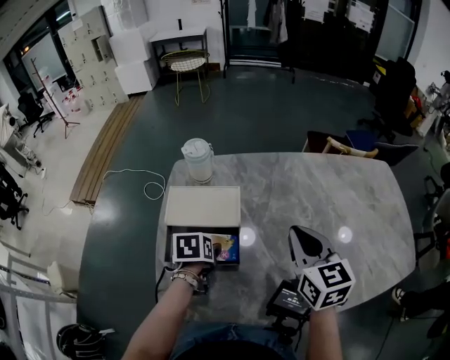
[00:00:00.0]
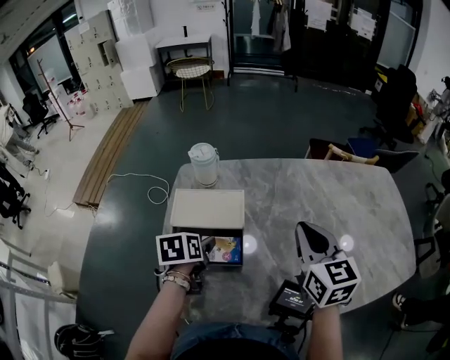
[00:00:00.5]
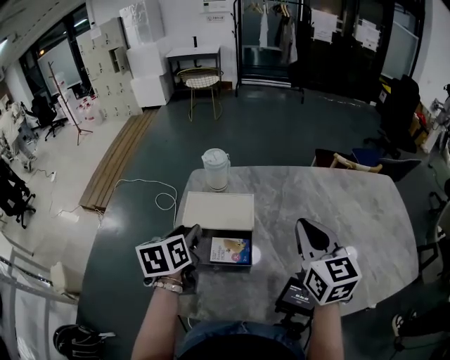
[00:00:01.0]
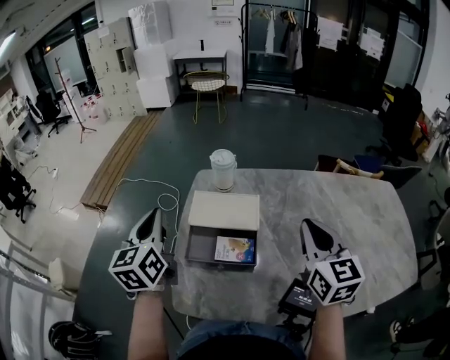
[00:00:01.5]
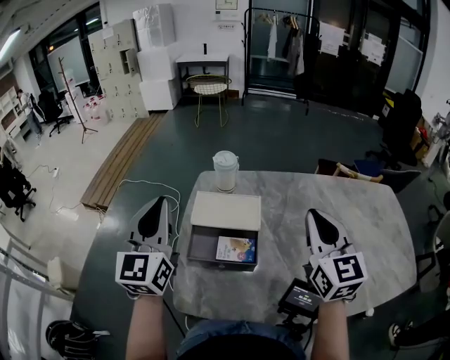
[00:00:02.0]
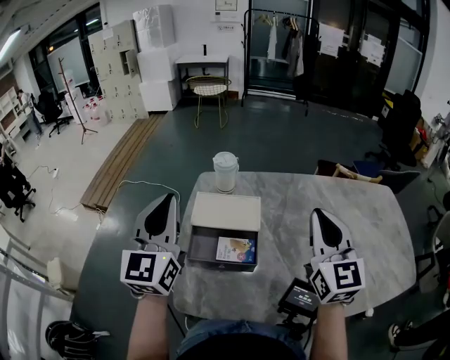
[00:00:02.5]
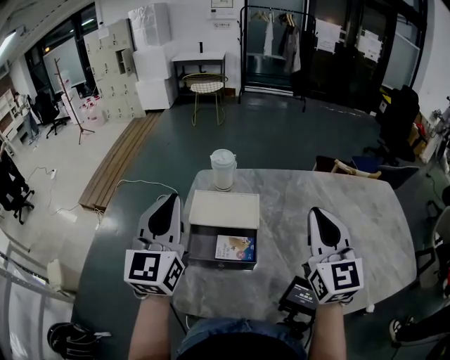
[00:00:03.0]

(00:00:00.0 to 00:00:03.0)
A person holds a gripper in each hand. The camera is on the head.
00:00:00.0 - 00:00:01.5: The right gripper shifts roughly 5 cm upward. The left gripper moves upward and to the left, approximately 30 cm, tips its fingers upward by about 50 degrees, and closes.
00:00:01.5 - 00:00:03.0: The left gripper heads upward and to the right, covering about 10 cm, and rotates roughly 30 degrees.

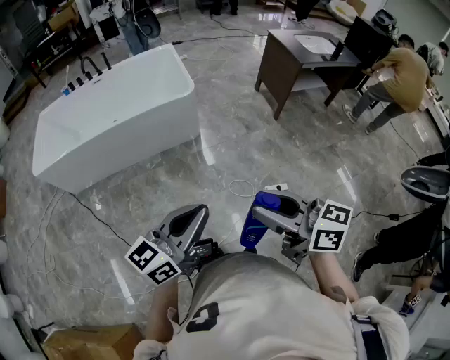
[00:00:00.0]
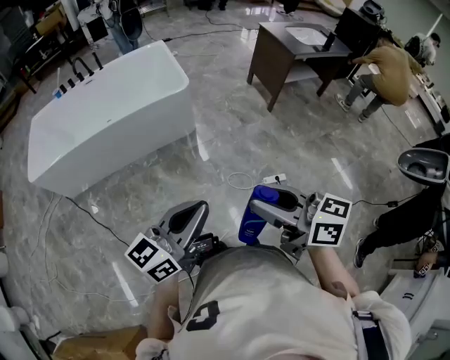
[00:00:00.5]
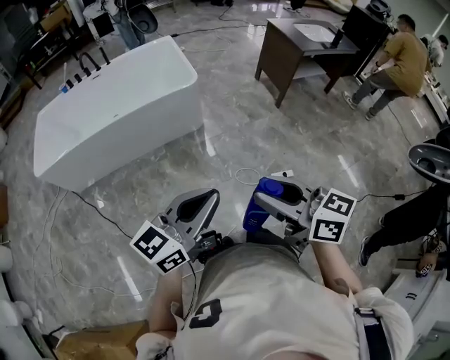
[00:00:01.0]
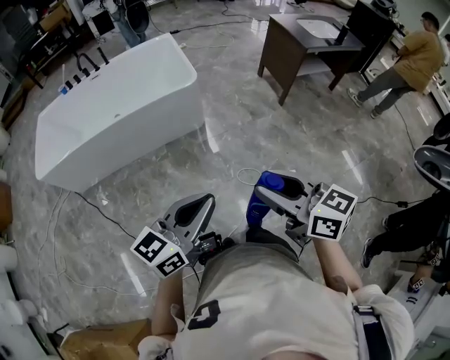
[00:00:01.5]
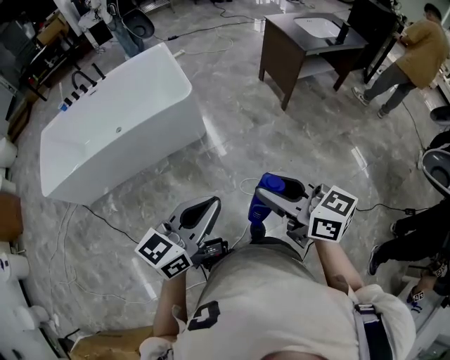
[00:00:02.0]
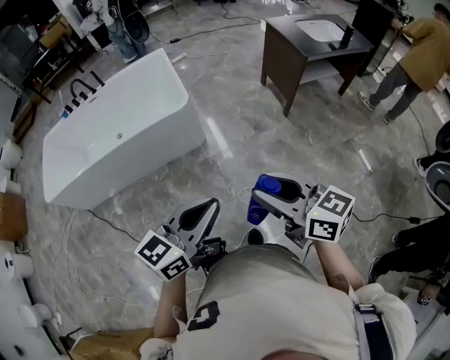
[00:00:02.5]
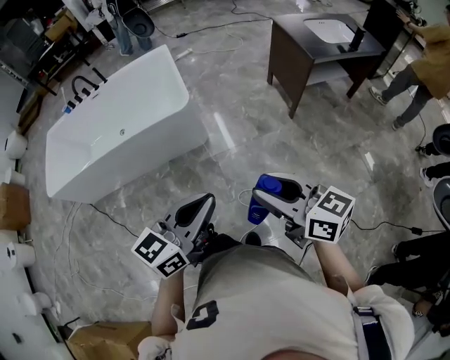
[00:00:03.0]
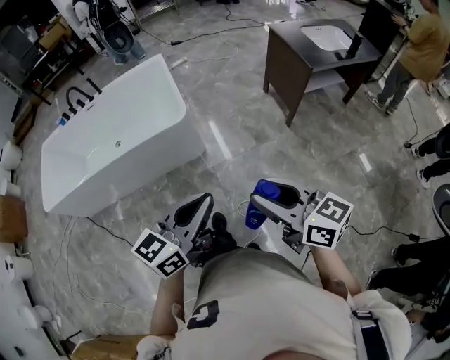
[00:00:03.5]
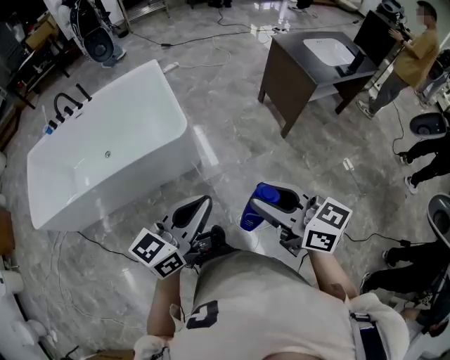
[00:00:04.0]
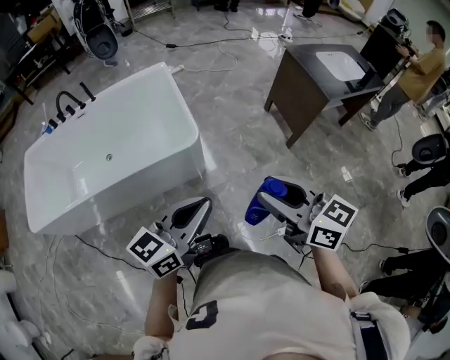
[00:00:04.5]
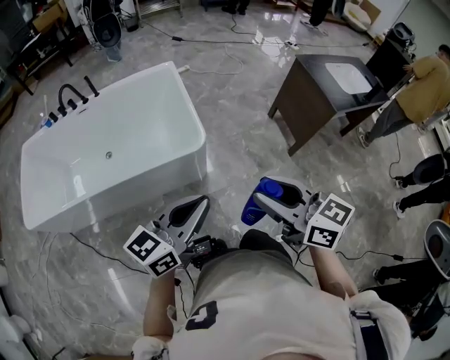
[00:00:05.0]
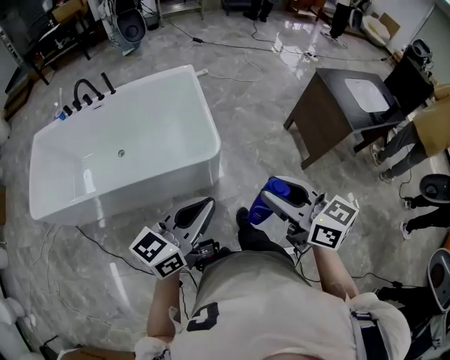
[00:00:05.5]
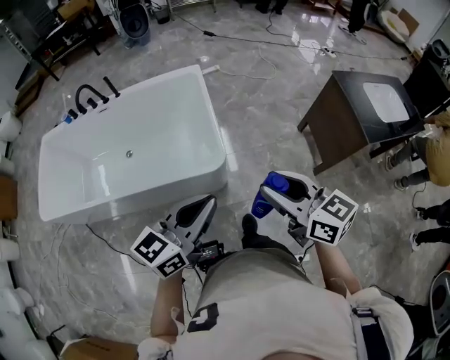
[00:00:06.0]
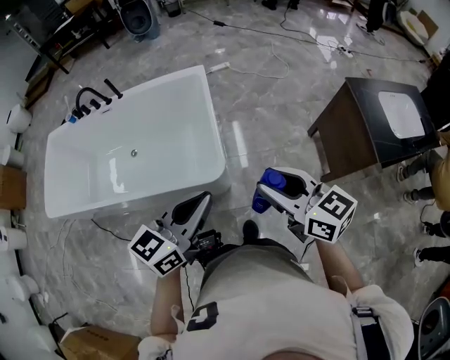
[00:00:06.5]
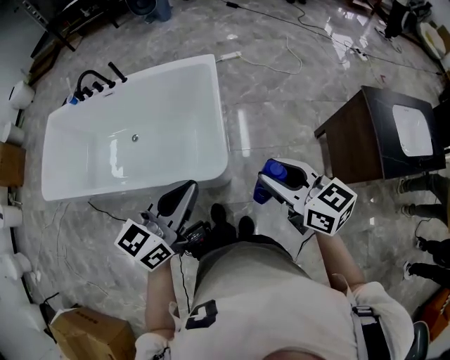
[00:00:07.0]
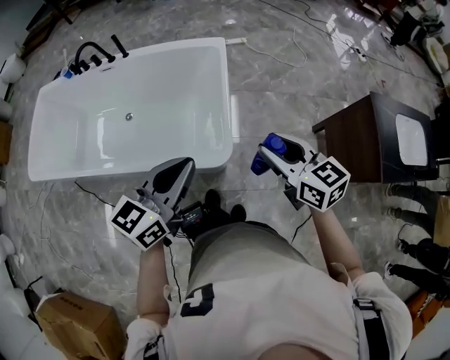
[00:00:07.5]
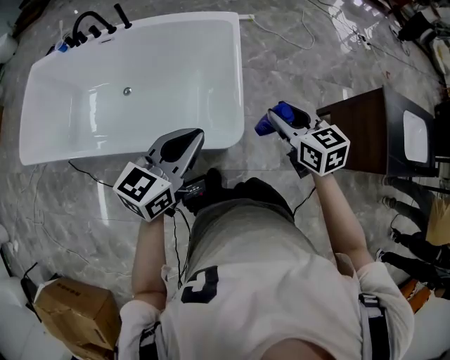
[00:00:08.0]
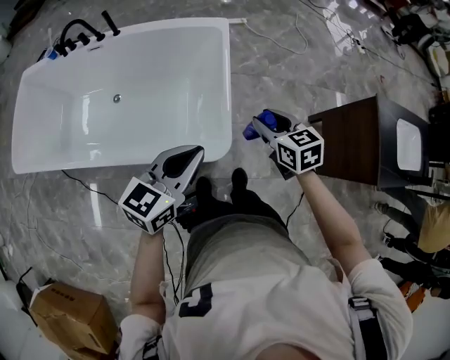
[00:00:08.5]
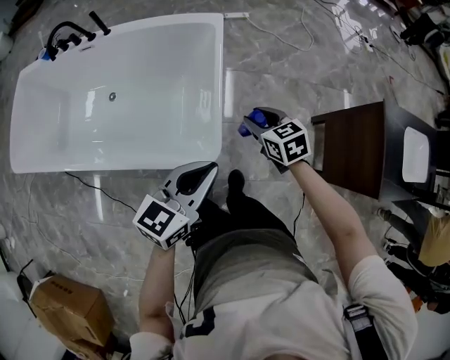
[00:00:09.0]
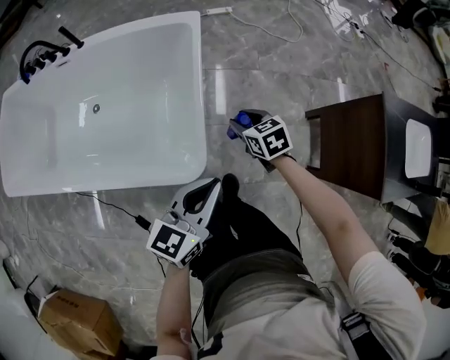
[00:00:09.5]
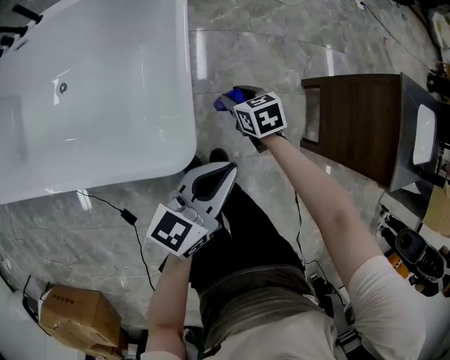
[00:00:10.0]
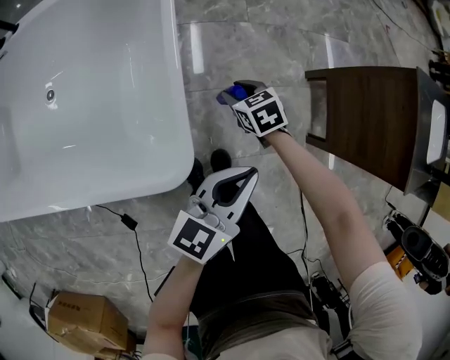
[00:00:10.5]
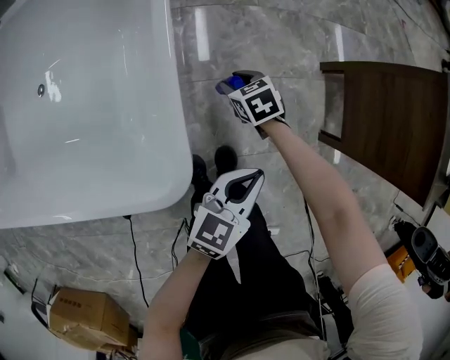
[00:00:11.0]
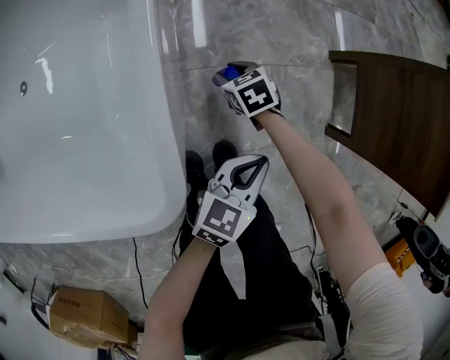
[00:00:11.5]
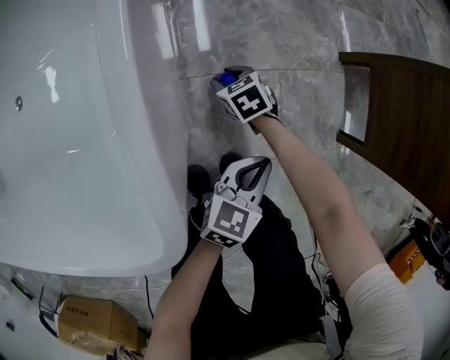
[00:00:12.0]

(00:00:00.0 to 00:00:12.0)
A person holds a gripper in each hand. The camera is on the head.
00:00:00.0 - 00:00:02.0: The left gripper moves forward and to the right, approximately 10 cm. Meanwhile the right gripper moves forward, some 15 cm.
00:00:02.0 - 00:00:04.0: The grippers both shift forward by some 25 cm.
00:00:04.0 - 00:00:06.0: Both grippers move forward, about 25 cm.
00:00:06.0 - 00:00:08.0: The left gripper moves forward, approximately 20 cm, while the right gripper travels forward and downward by about 30 cm, and turns by some 20 degrees.
00:00:08.0 - 00:00:10.0: The left gripper is displaced to the right and downward by about 30 cm, while the right gripper shifts about 35 cm downward, and swivels roughly 20 degrees.
00:00:10.0 - 00:00:12.0: The grippers both shift downward by some 40 cm. The left gripper changes its angle by roughly 20 degrees.

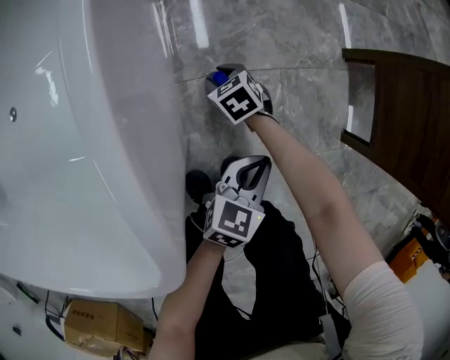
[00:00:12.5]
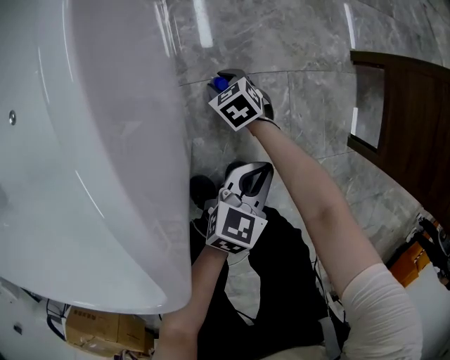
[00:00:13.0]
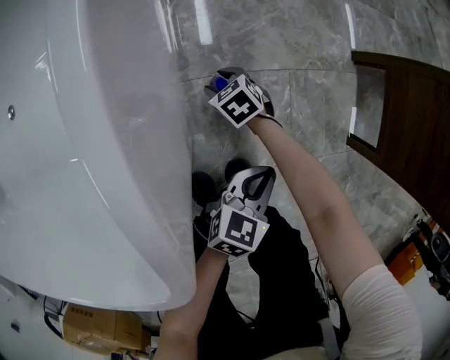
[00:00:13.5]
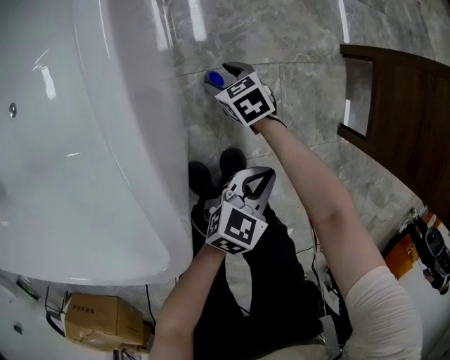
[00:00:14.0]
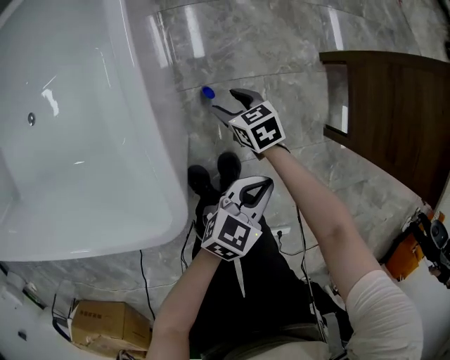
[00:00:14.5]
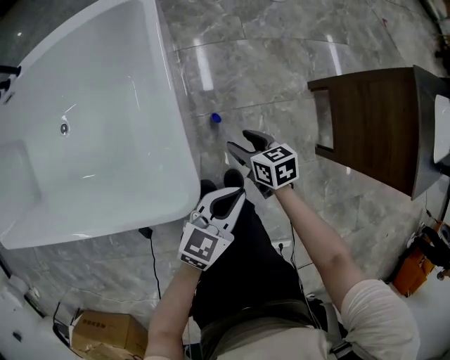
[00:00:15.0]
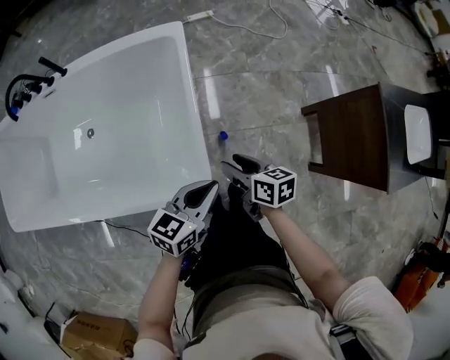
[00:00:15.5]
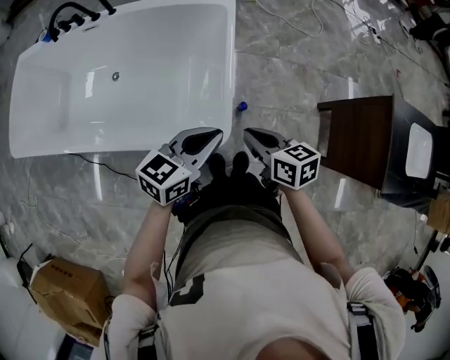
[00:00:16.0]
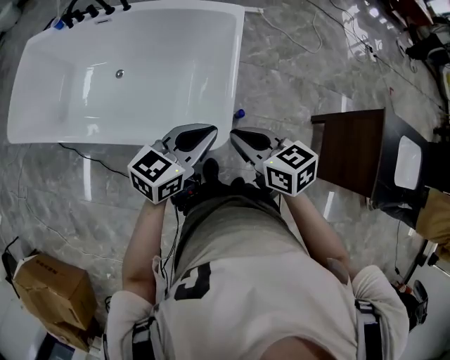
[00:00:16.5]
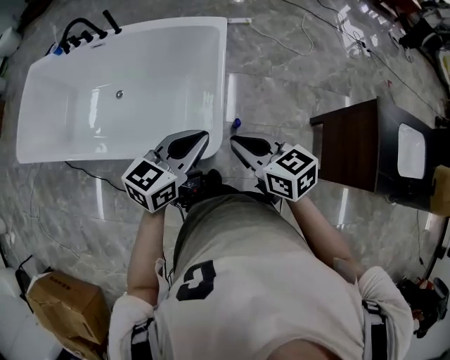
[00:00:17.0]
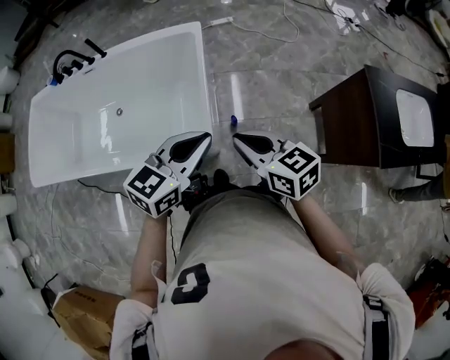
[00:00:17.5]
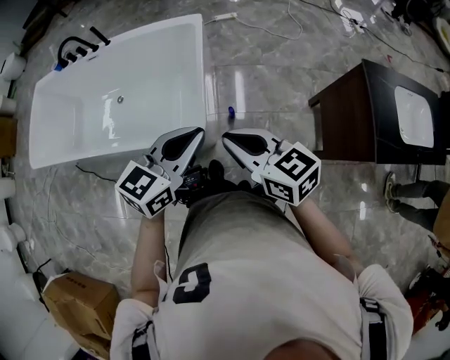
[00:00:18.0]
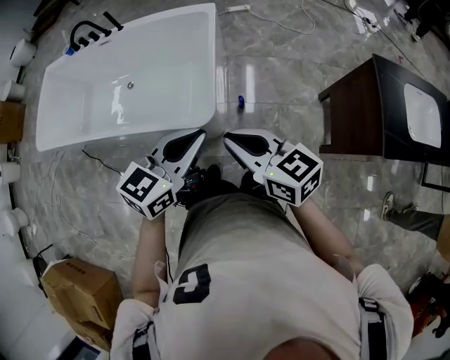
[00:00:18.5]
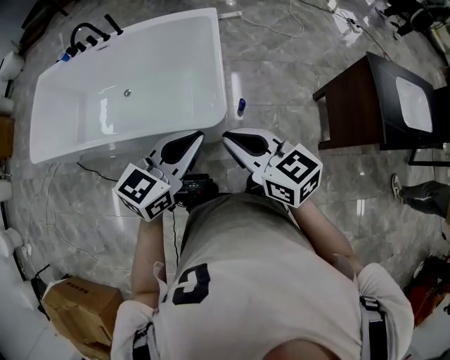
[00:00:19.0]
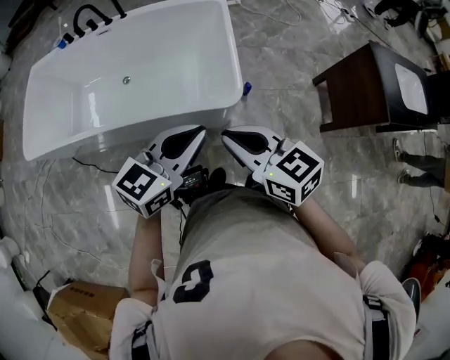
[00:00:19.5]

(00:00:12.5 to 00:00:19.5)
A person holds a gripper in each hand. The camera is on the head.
00:00:12.5 - 00:00:14.5: Both grippers move upward, roughly 15 cm. The right gripper opens.
00:00:14.5 - 00:00:16.0: The left gripper moves upward and to the left, about 50 cm, and changes its angle by some 30 degrees, while the right gripper shifts roughly 50 cm upward, turns by about 20 degrees, and closes.
00:00:16.0 - 00:00:17.5: Both grippers travel together upward, to the right and backward, about 15 cm.
00:00:17.5 - 00:00:19.5: Both grippers travel together to the left and backward, some 30 cm.

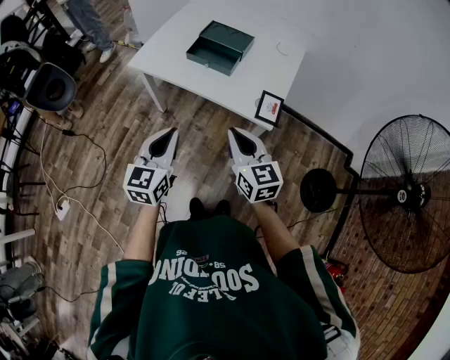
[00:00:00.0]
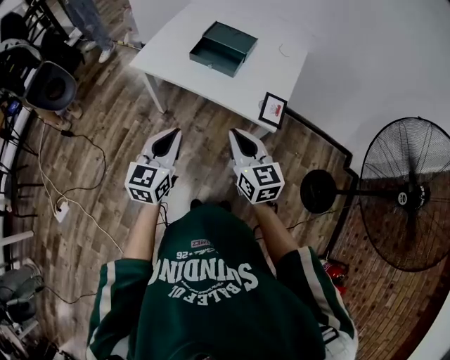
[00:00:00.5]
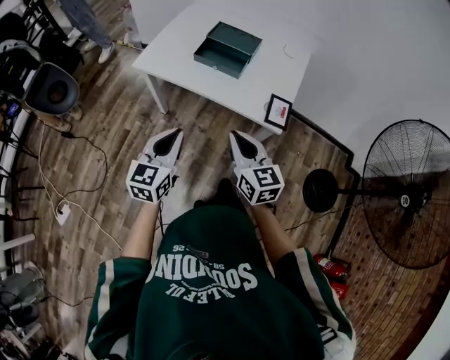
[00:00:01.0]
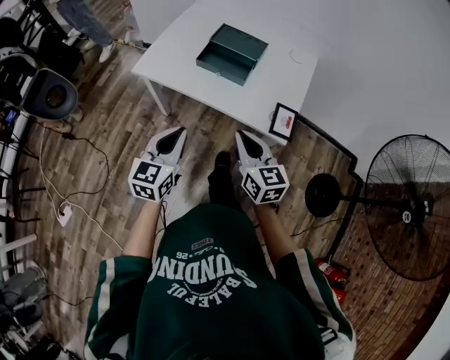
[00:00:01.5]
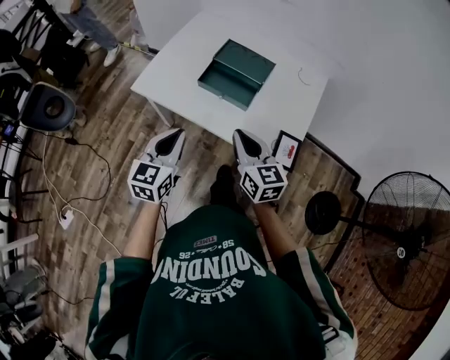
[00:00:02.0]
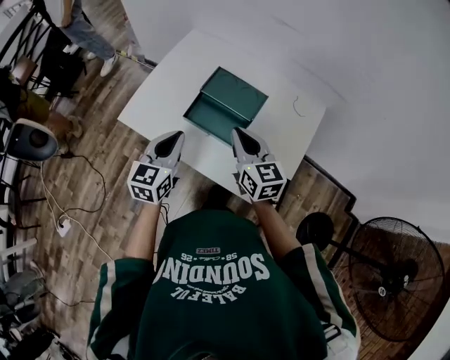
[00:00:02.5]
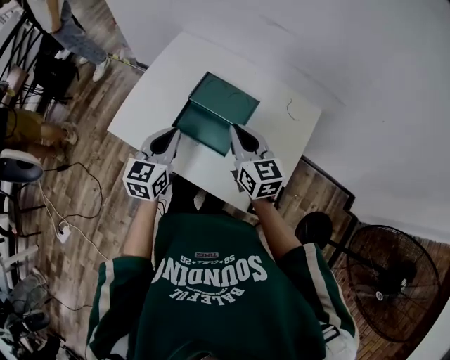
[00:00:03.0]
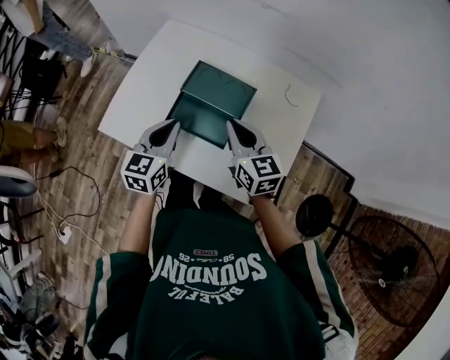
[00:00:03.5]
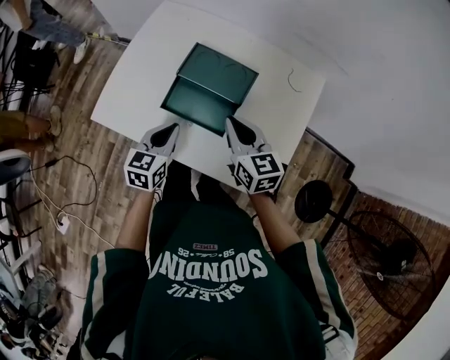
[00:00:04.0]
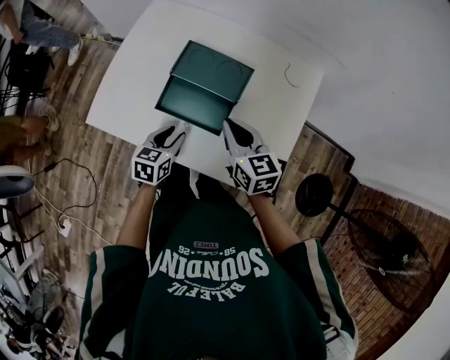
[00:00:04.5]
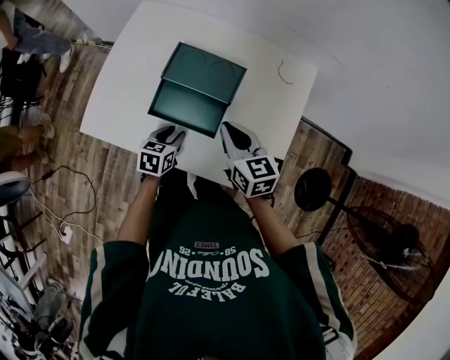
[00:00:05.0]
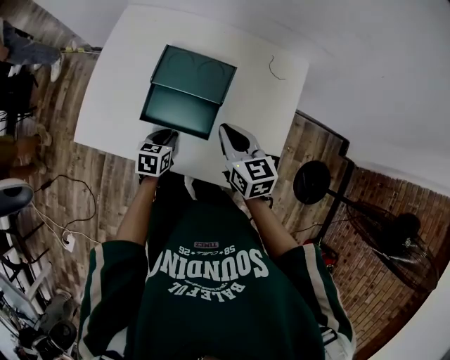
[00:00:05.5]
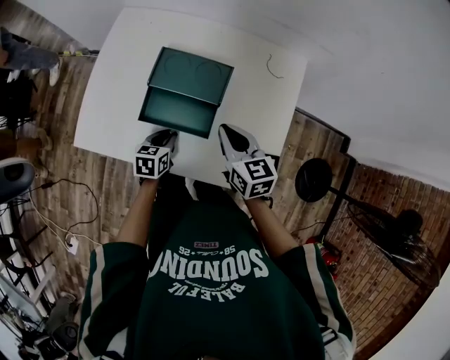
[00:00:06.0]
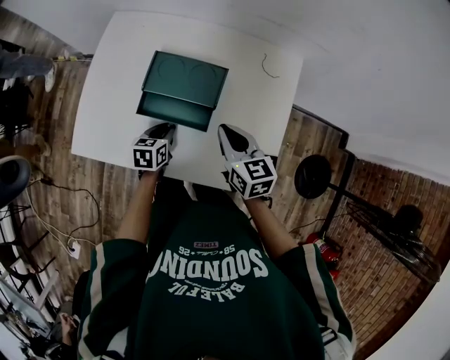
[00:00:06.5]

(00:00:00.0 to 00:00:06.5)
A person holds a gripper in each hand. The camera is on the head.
00:00:00.0 - 00:00:02.0: Both grippers travel together forward, some 20 cm.
00:00:02.0 - 00:00:04.5: The right gripper heads forward, covering roughly 20 cm, while the left gripper moves downward, forward and to the right, some 25 cm, swivels approximately 30 degrees, and opens up.
00:00:04.5 - 00:00:06.5: The left gripper is displaced forward and downward by about 10 cm, while the right gripper ends up about 5 cm from where it was.
